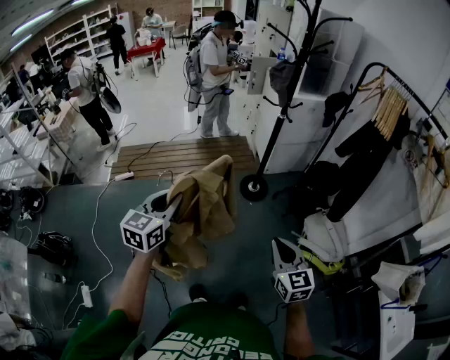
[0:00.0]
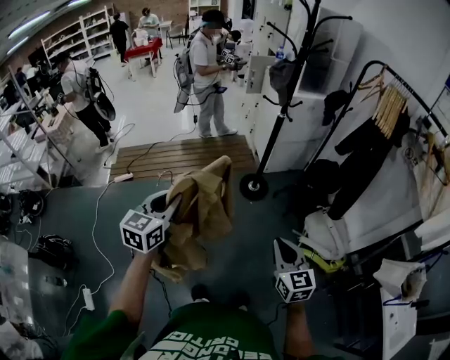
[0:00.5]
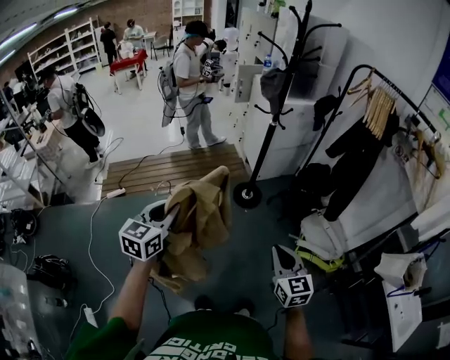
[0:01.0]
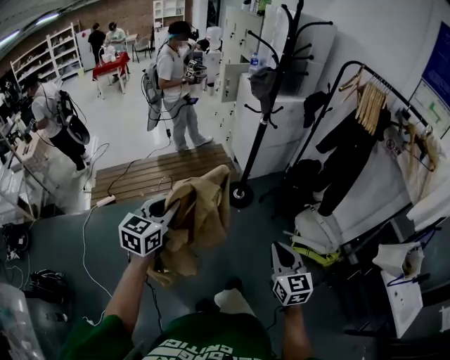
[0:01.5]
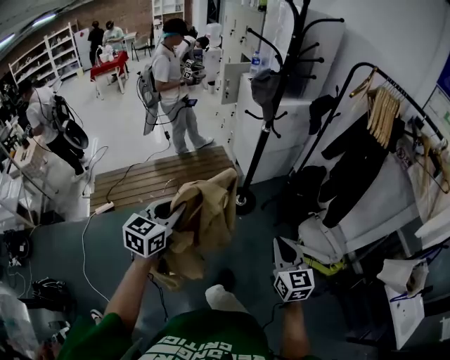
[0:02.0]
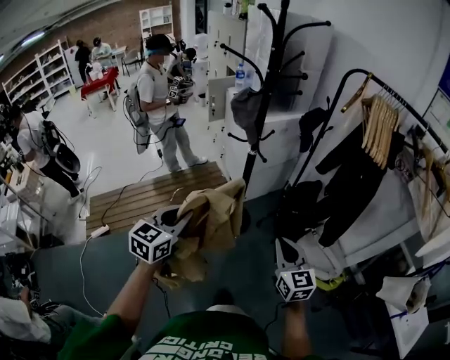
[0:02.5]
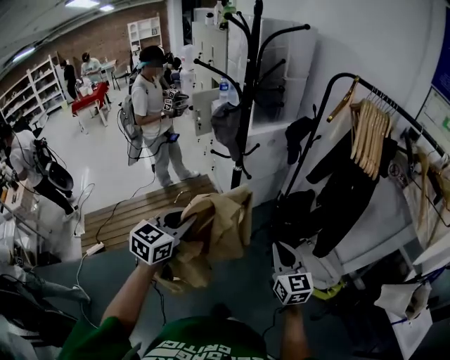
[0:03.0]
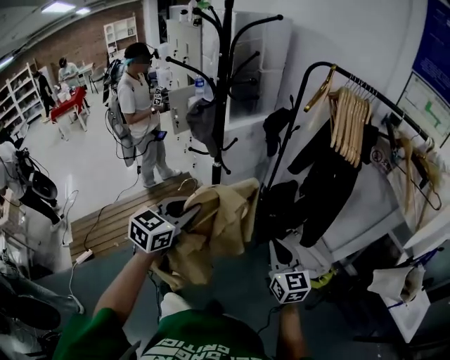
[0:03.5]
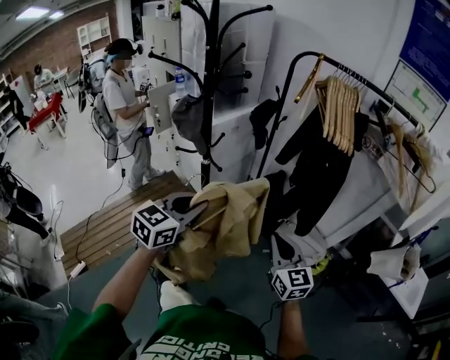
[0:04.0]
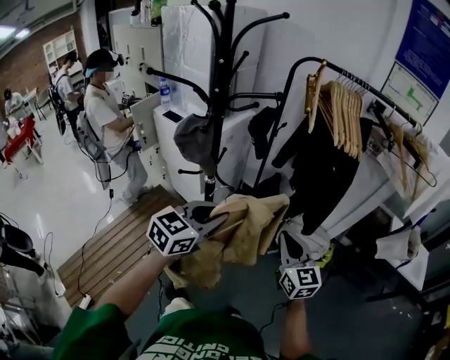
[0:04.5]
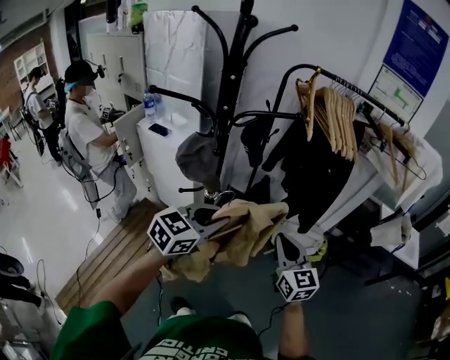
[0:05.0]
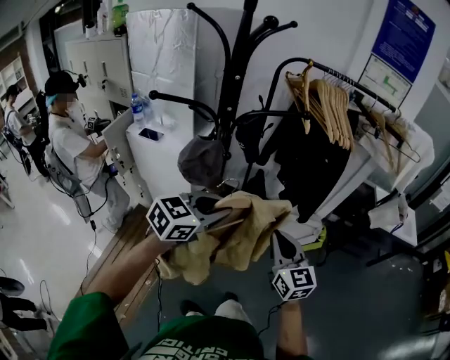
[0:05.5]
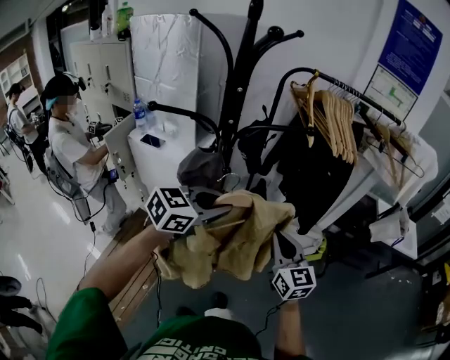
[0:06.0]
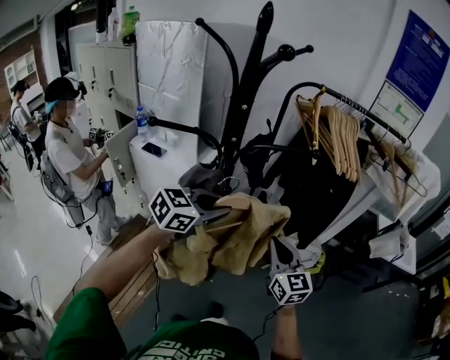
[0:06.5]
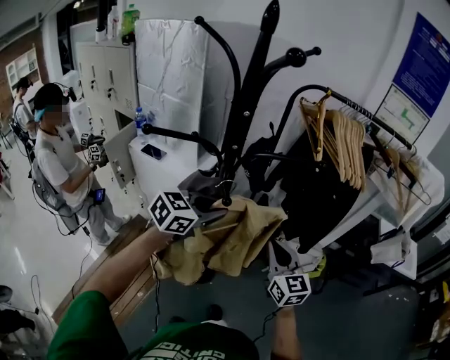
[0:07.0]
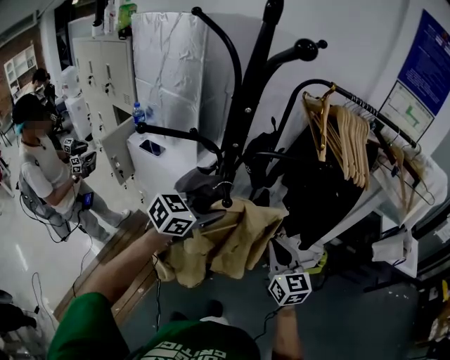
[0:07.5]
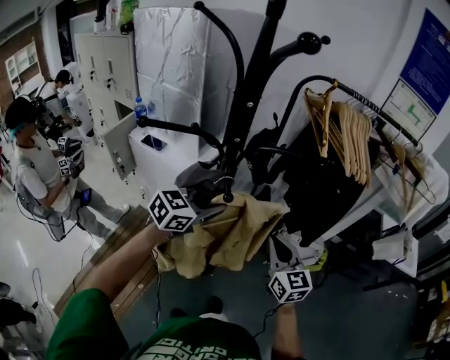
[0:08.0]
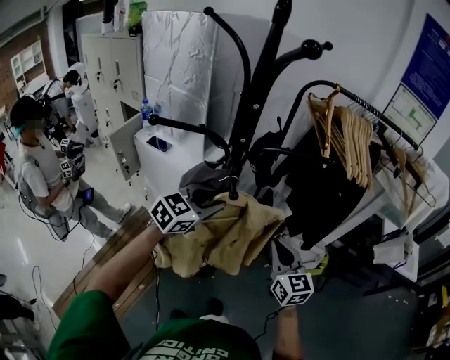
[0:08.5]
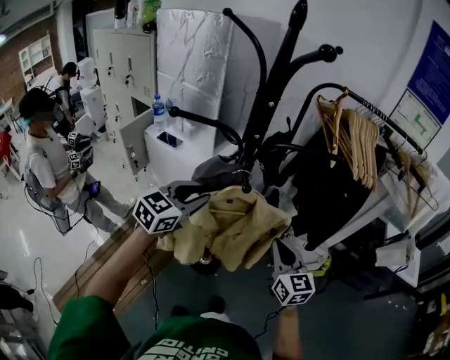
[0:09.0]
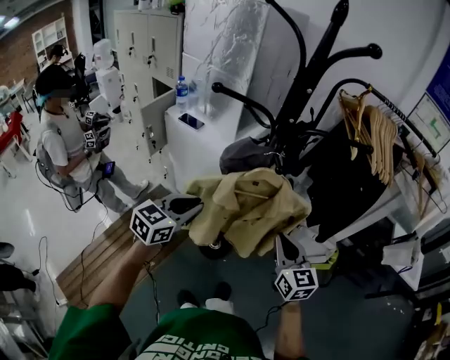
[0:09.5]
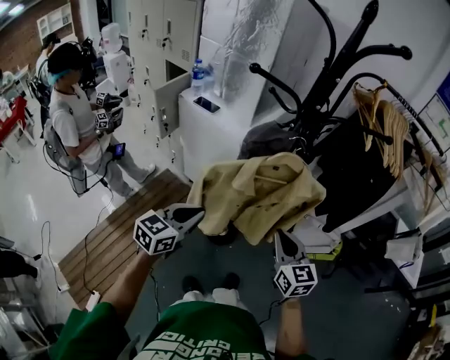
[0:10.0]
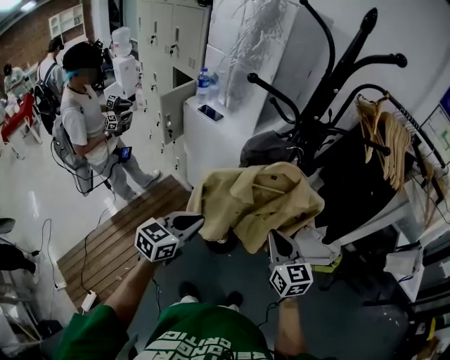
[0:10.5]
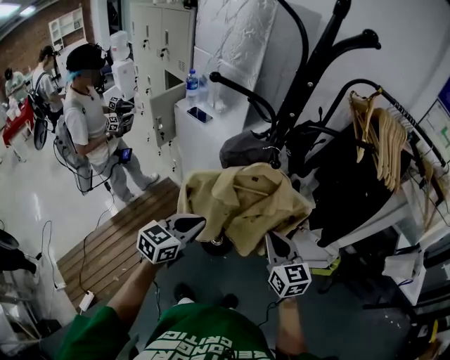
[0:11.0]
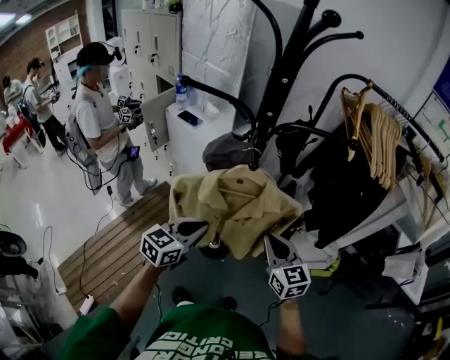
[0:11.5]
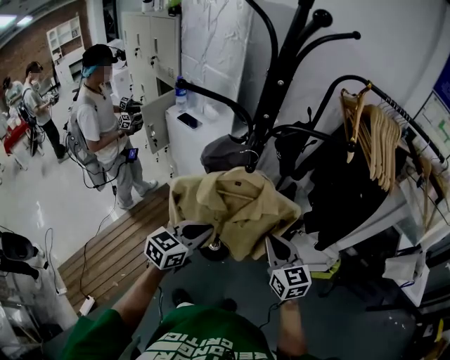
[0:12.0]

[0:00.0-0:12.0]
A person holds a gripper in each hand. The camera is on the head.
0:00.0 to 0:02.0: The two grippers go about 15 cm forward.
0:02.0 to 0:04.0: The left gripper moves roughly 35 cm, and turns by approximately 40 degrees; the right gripper moves about 25 cm.
0:04.0 to 0:06.0: The left gripper moves some 20 cm, and changes its angle by roughly 40 degrees, while the right gripper shifts by roughly 25 cm, and rotates some 30 degrees.
0:06.0 to 0:08.0: The left gripper is displaced forward and to the left by about 10 cm, while the right gripper is displaced forward by roughly 5 cm.
0:08.0 to 0:10.0: The left gripper heads backward, to the left and downward, covering roughly 30 cm, and changes its angle by some 30 degrees; the right gripper moves backward and to the left, approximately 15 cm.
0:10.0 to 0:12.0: The left gripper moves to the right, some 15 cm. The right gripper travels to the right and forward by some 10 cm.

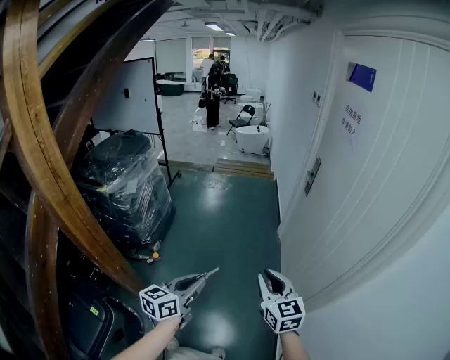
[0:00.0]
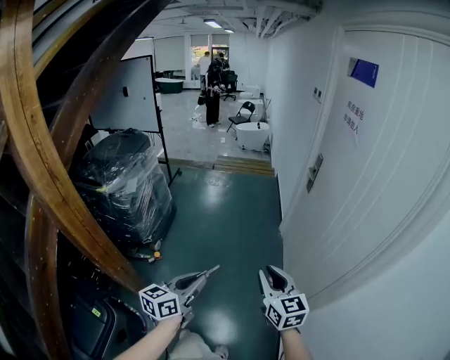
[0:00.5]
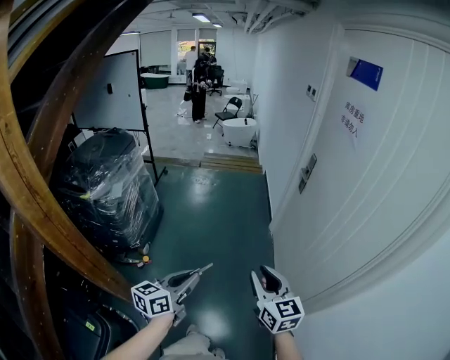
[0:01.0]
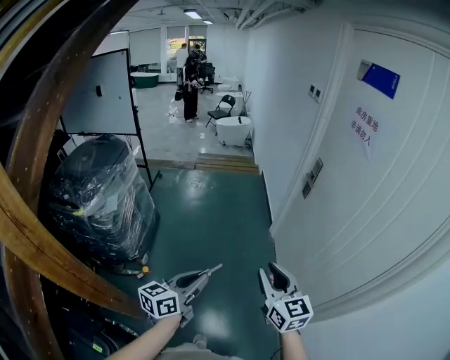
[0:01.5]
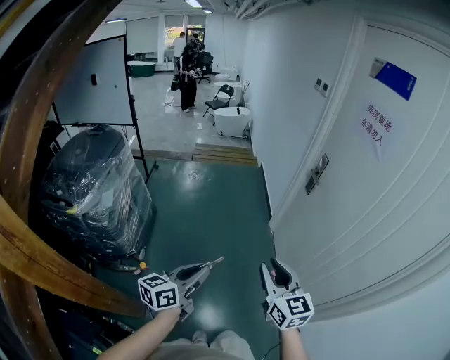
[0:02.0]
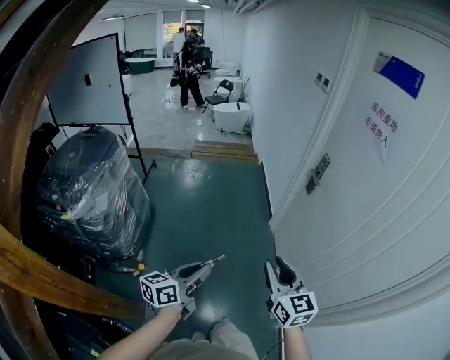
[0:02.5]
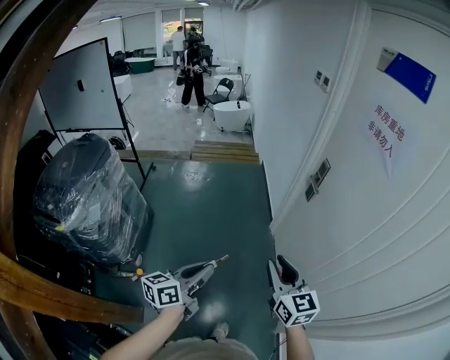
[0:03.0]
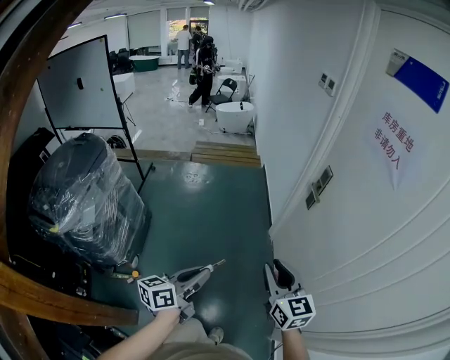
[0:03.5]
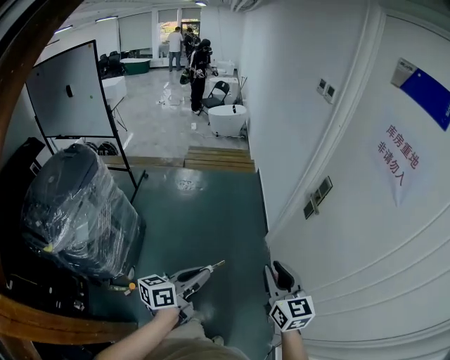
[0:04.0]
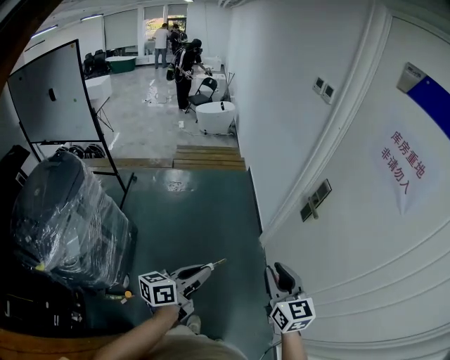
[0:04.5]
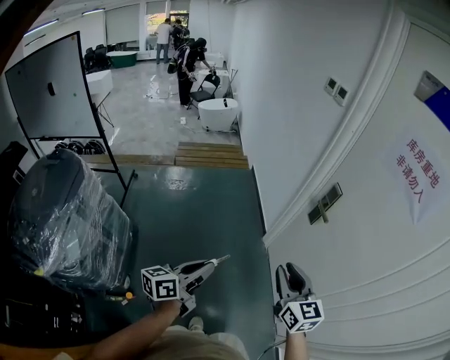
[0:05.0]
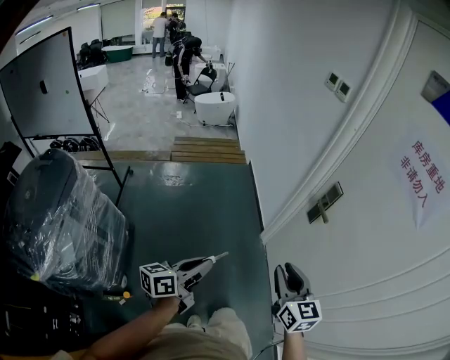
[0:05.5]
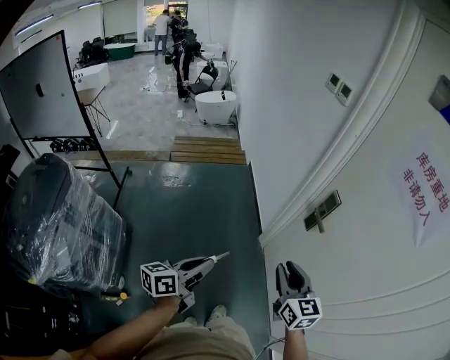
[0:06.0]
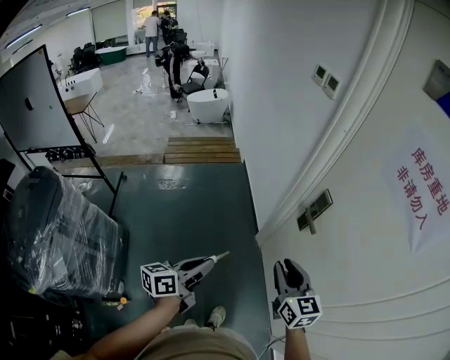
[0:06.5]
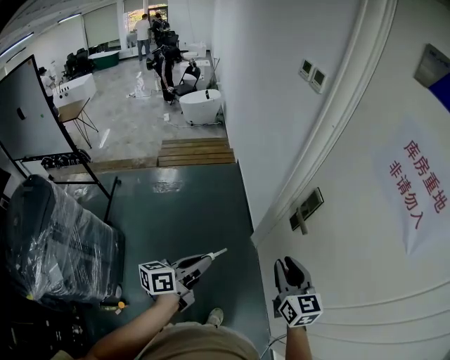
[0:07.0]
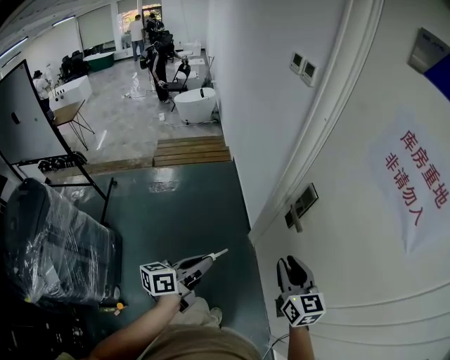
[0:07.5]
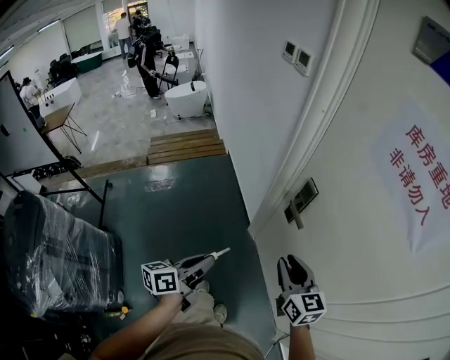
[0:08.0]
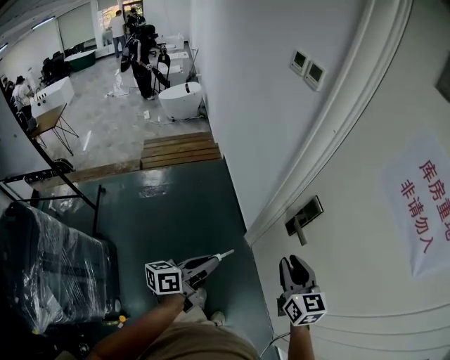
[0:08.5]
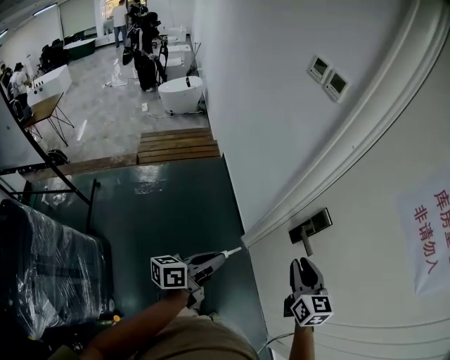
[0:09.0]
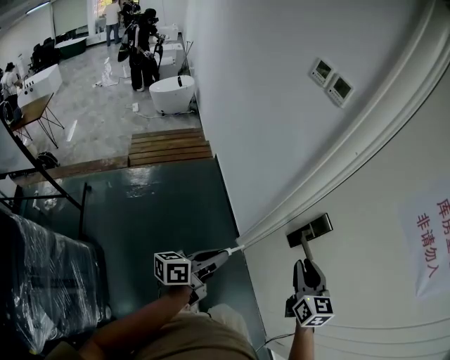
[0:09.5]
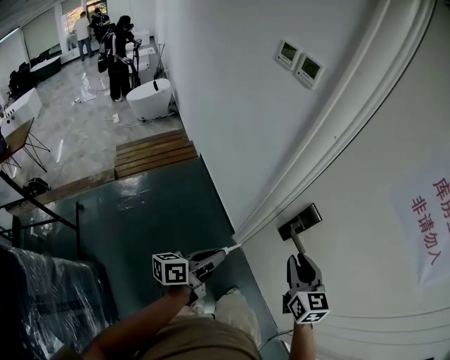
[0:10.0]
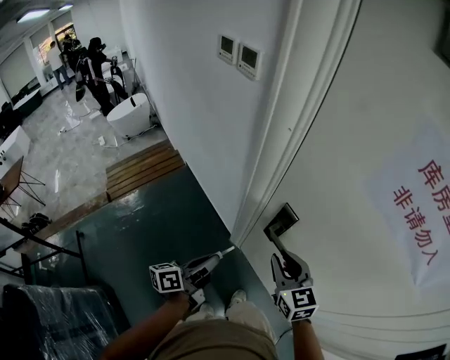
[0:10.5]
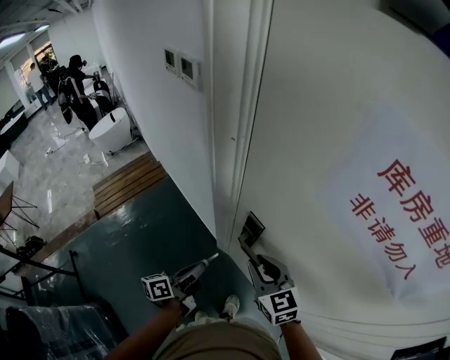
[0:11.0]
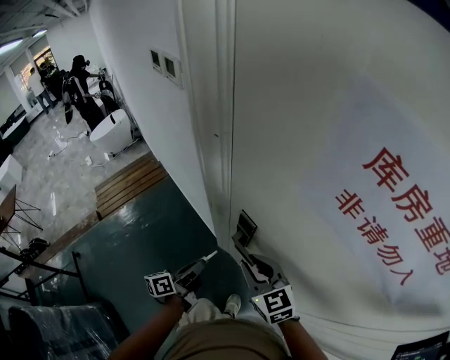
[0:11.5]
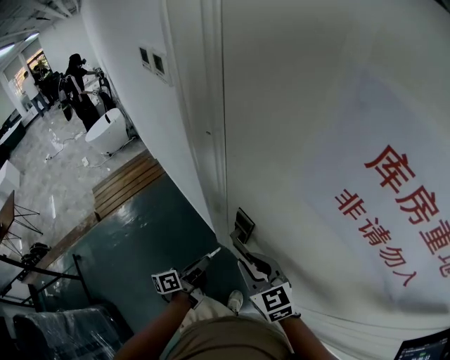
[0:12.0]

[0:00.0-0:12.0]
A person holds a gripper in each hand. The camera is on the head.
0:00.0 to 0:02.0: Both grippers travel together forward and to the left, some 20 cm.
0:02.0 to 0:04.0: The two grippers go about 25 cm forward.
0:04.0 to 0:06.0: Both grippers travel together forward, approximately 15 cm.
0:06.0 to 0:08.0: The left gripper shifts roughly 15 cm forward and to the right. The right gripper goes some 15 cm to the right and forward.
0:08.0 to 0:10.0: Both grippers move forward, about 15 cm.
0:10.0 to 0:12.0: The left gripper goes some 20 cm to the right, forward and downward. The right gripper heads forward, covering roughly 5 cm.

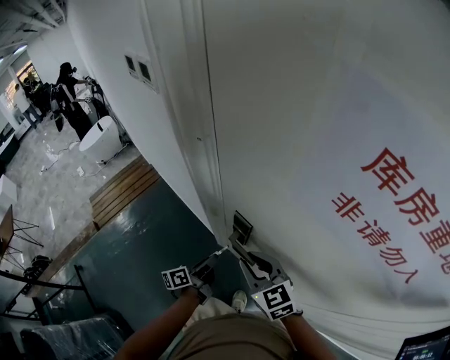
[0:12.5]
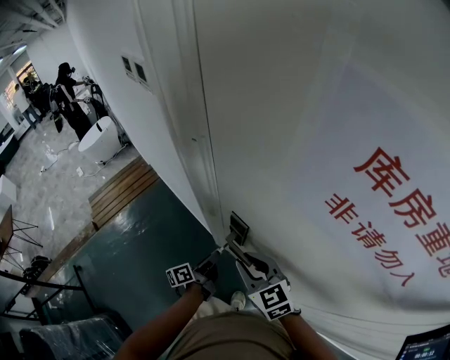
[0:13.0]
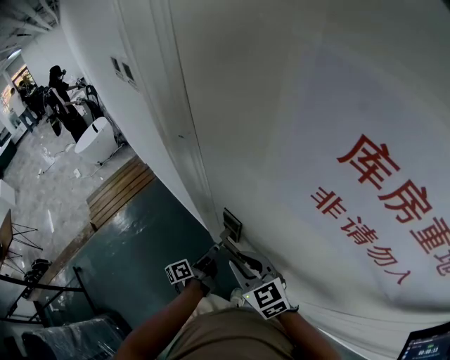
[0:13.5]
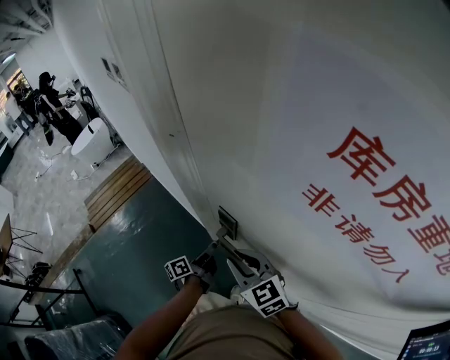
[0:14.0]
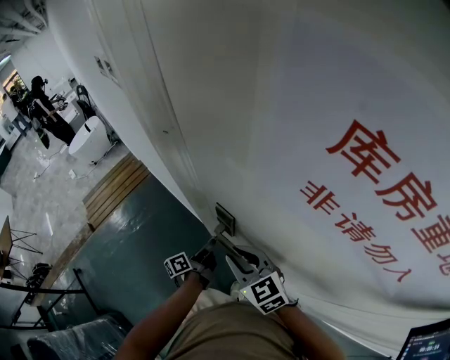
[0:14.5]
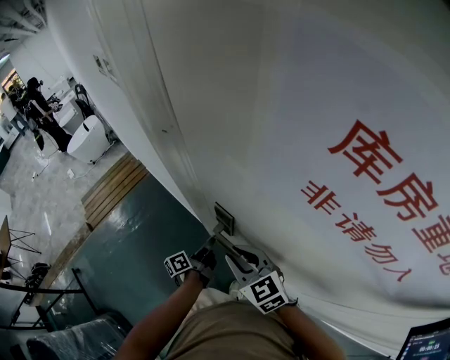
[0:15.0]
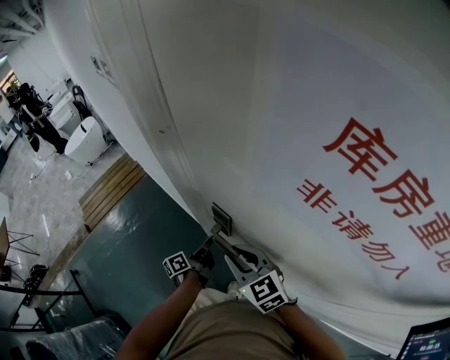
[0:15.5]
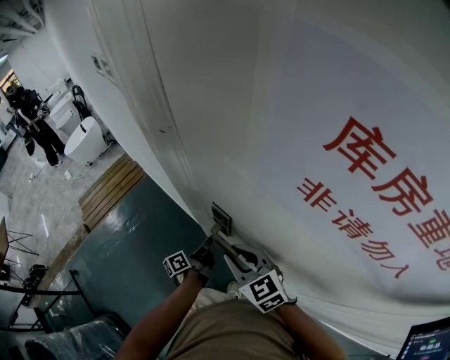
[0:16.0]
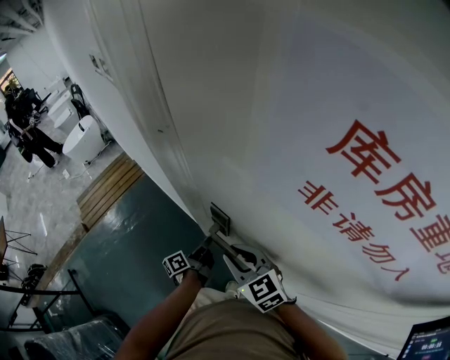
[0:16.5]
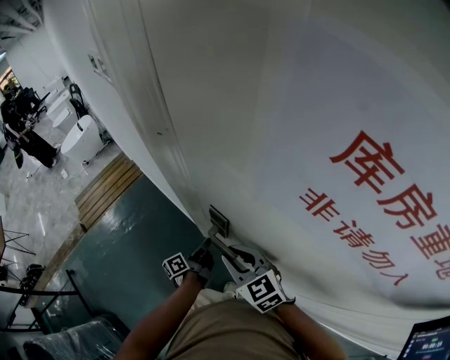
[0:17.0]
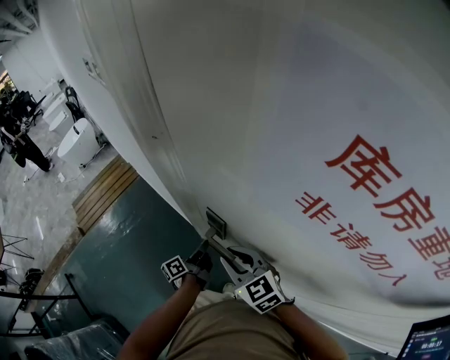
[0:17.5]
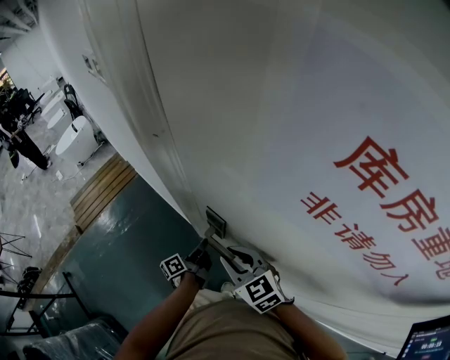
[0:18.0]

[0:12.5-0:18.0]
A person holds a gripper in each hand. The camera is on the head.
0:12.5 to 0:14.5: The left gripper ends up approximately 5 cm from where it was.
0:14.5 to 0:16.0: Both grippers stay about where they are.
0:16.0 to 0:18.0: The grippers move only a little.
